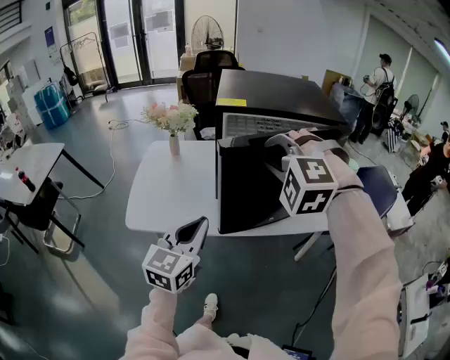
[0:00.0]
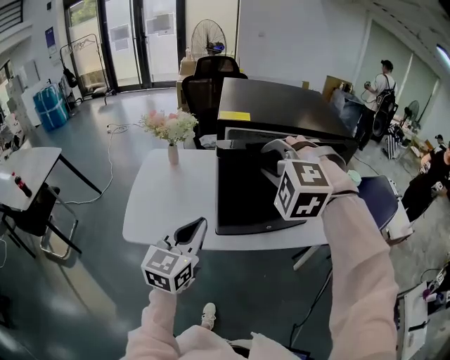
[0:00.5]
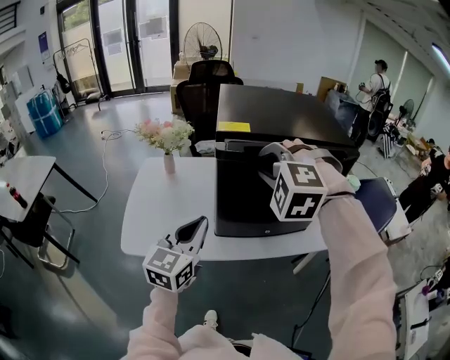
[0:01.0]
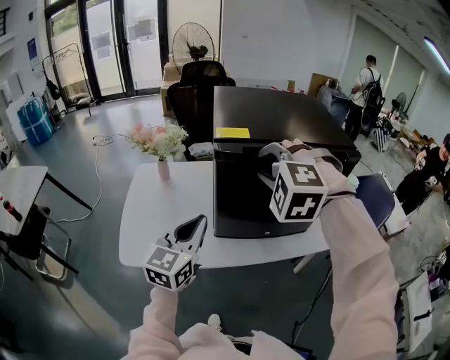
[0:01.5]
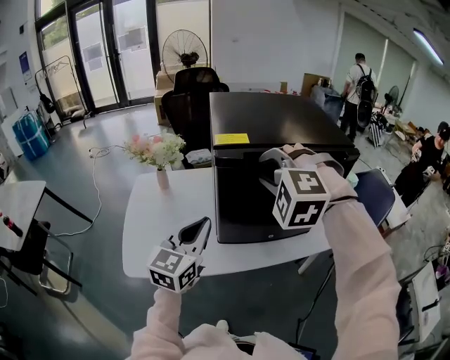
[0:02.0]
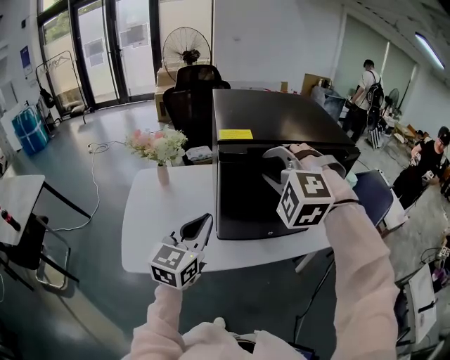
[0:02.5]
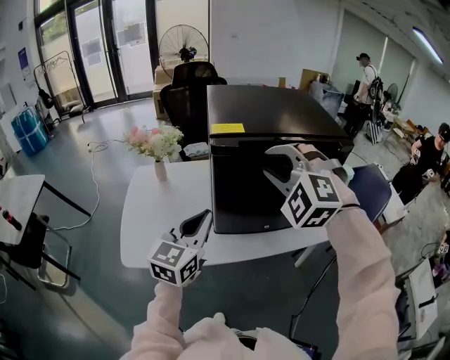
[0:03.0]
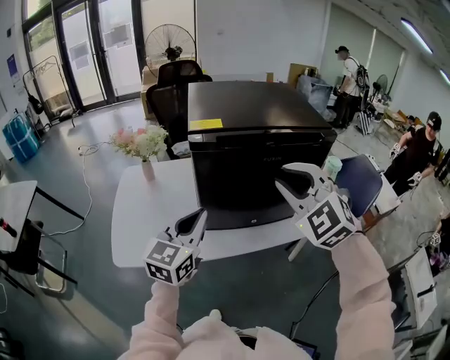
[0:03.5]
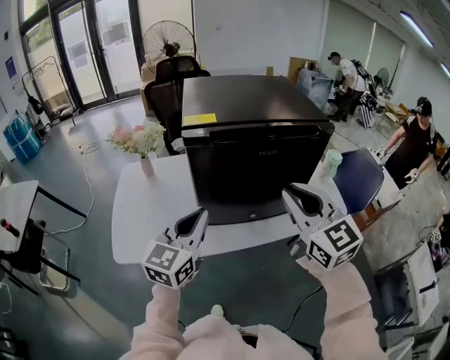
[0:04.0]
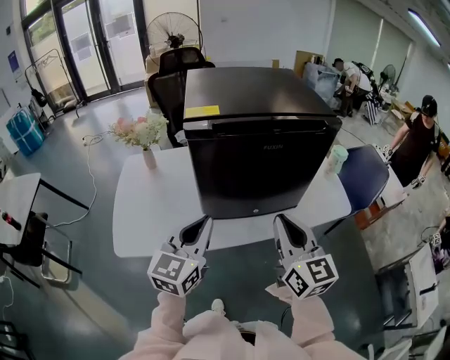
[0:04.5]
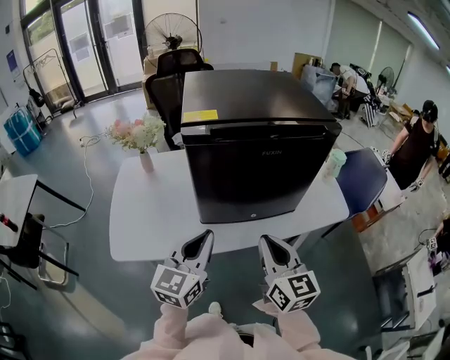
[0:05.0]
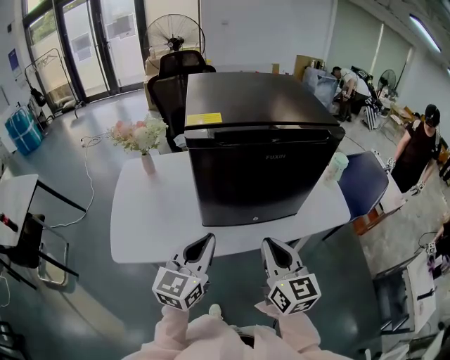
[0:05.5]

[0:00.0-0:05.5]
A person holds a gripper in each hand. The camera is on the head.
0:00.0 to 0:02.0: Both grippers move forward, about 15 cm.
0:02.0 to 0:03.5: The right gripper is displaced to the right and backward by approximately 15 cm, and swivels about 30 degrees, while the left gripper is displaced to the right by about 5 cm.
0:03.5 to 0:05.5: The left gripper is displaced downward by approximately 5 cm. The right gripper heads downward and backward, covering some 15 cm, rolls clockwise, seen from behind, by approximately 60 degrees, and closes up.

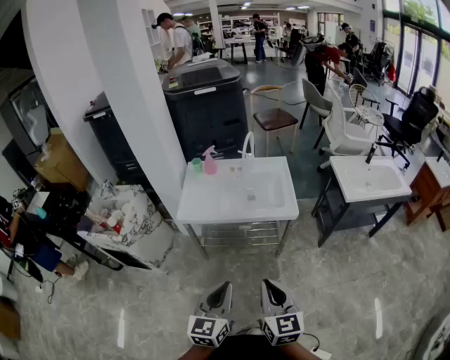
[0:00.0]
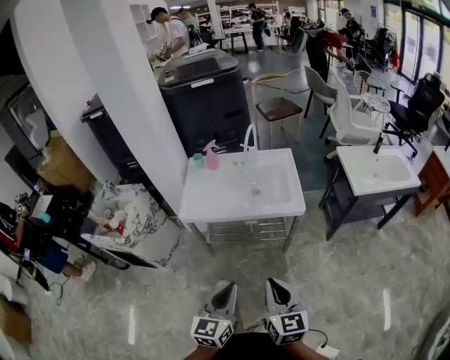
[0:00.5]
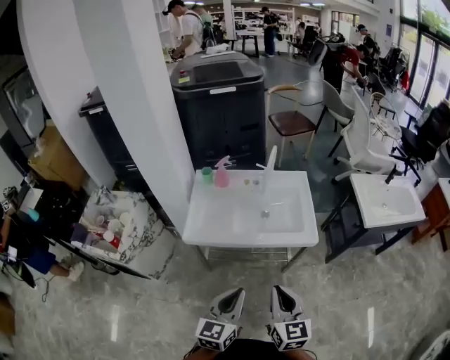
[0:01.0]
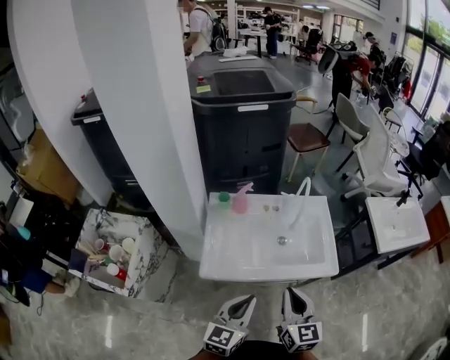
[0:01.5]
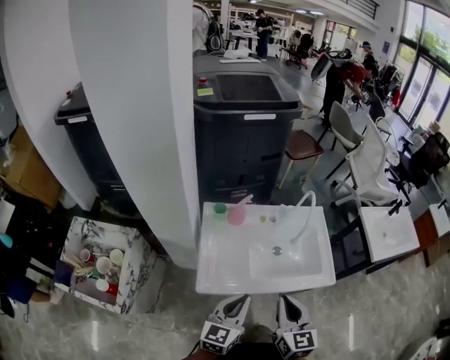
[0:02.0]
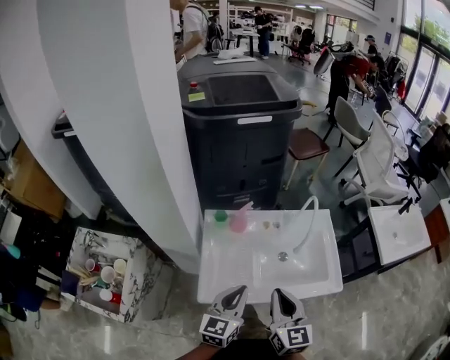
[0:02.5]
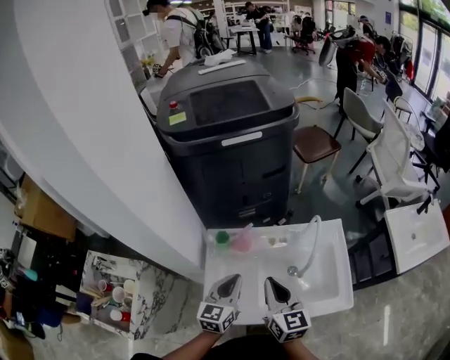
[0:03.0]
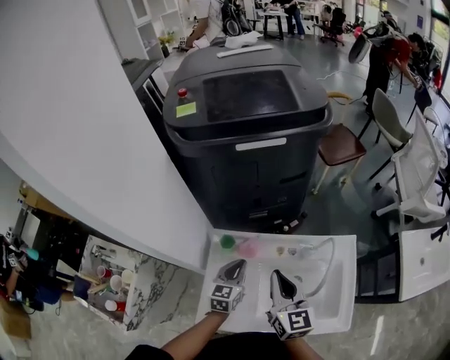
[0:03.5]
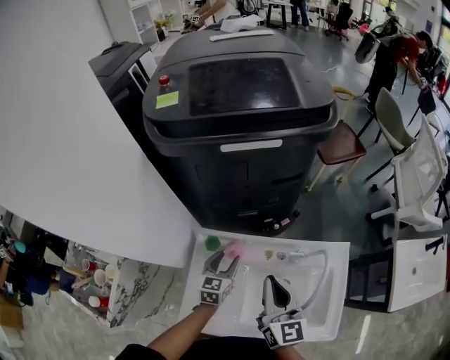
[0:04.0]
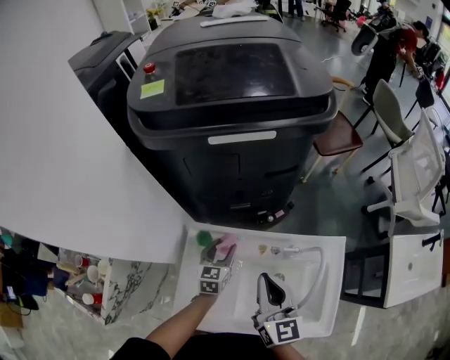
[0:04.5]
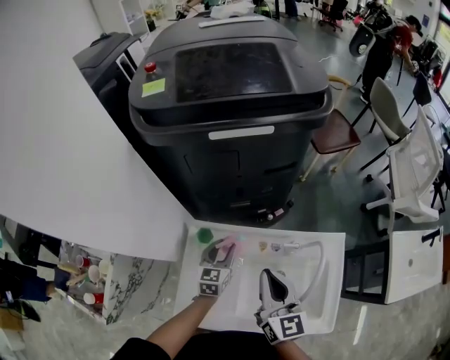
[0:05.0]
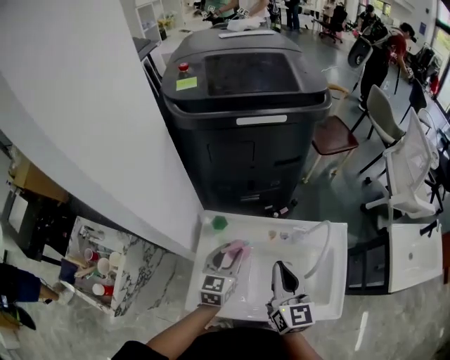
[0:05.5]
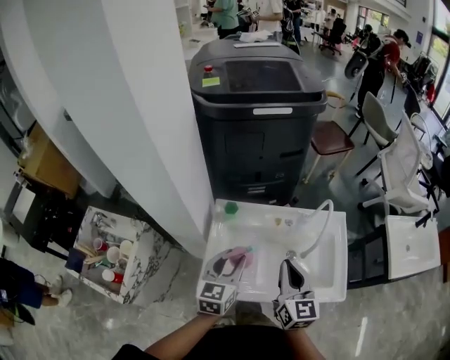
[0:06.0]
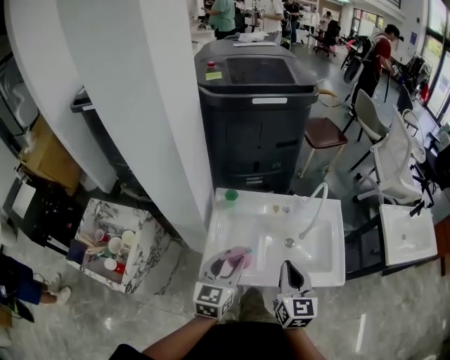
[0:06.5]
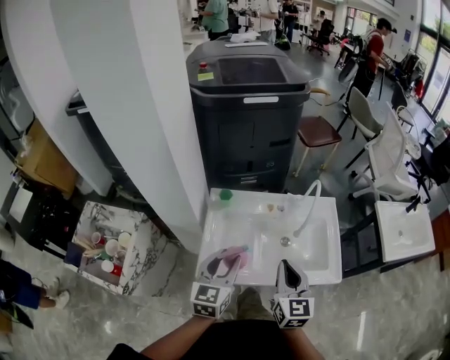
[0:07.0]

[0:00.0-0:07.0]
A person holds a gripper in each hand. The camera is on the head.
0:00.0 to 0:02.0: The pair of grippers is taken forward and to the left, roughly 50 cm.
0:02.0 to 0:03.5: The two grippers go roughly 35 cm forward.
0:03.5 to 0:05.0: The left gripper is displaced forward and downward by about 10 cm, and opens up.
0:05.0 to 0:07.0: The right gripper moves backward, some 25 cm, while the left gripper goes about 40 cm backward and upward.

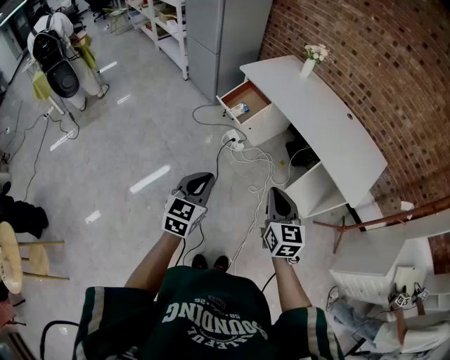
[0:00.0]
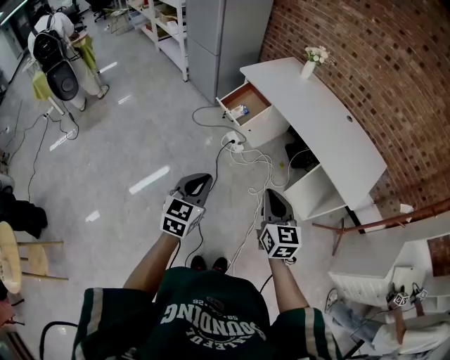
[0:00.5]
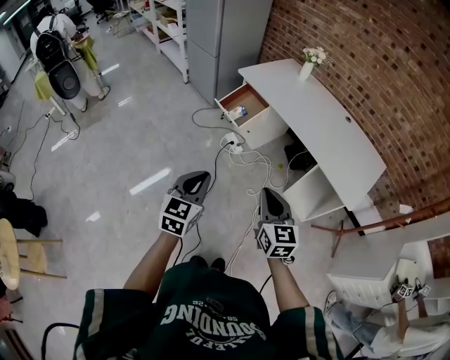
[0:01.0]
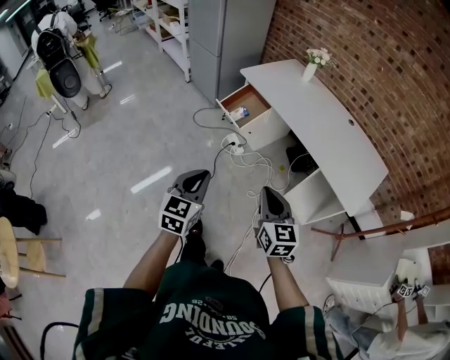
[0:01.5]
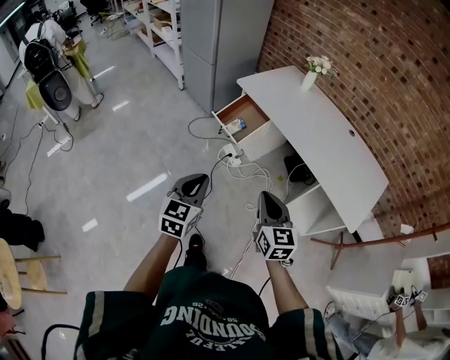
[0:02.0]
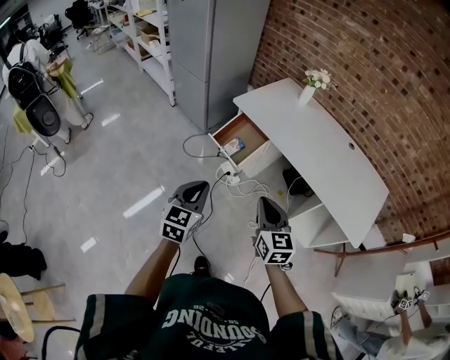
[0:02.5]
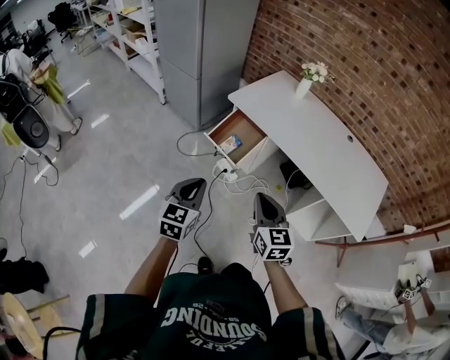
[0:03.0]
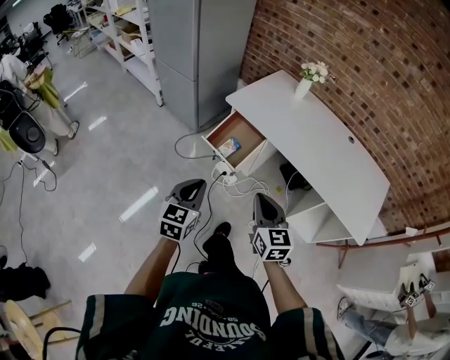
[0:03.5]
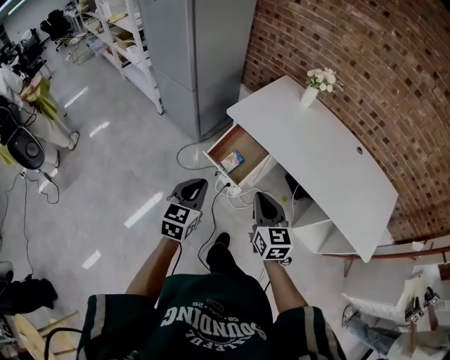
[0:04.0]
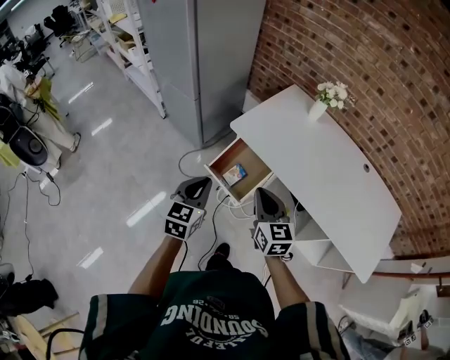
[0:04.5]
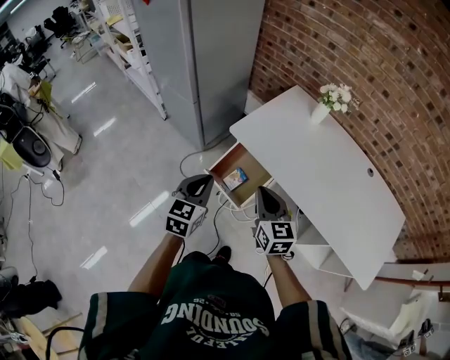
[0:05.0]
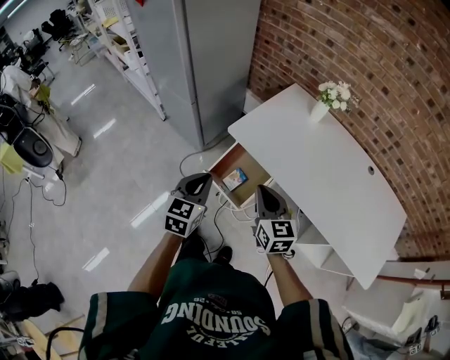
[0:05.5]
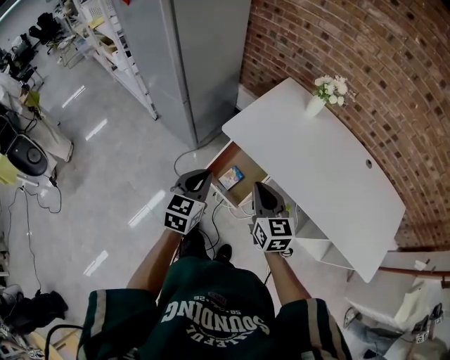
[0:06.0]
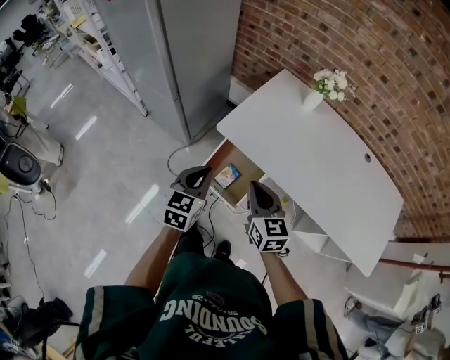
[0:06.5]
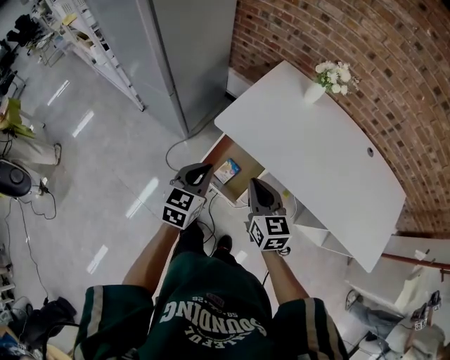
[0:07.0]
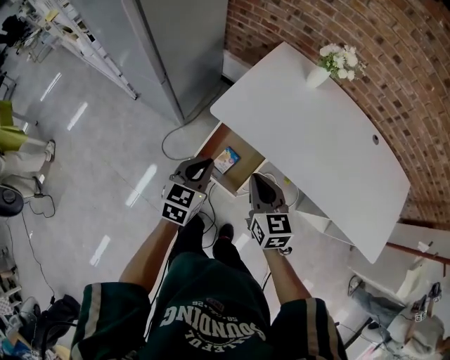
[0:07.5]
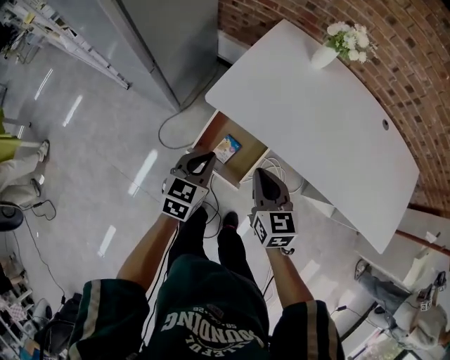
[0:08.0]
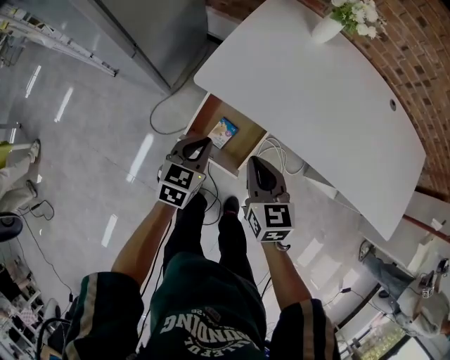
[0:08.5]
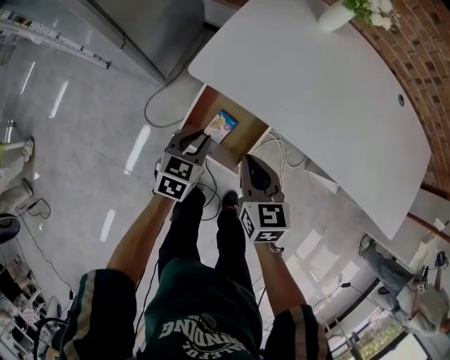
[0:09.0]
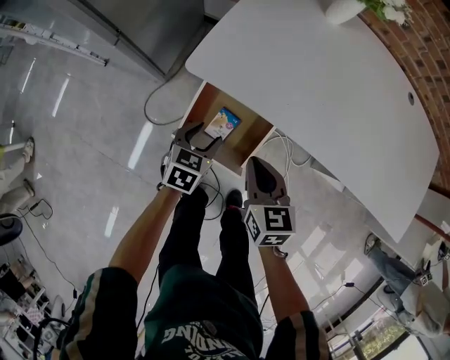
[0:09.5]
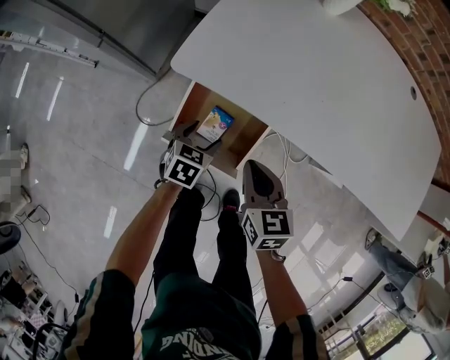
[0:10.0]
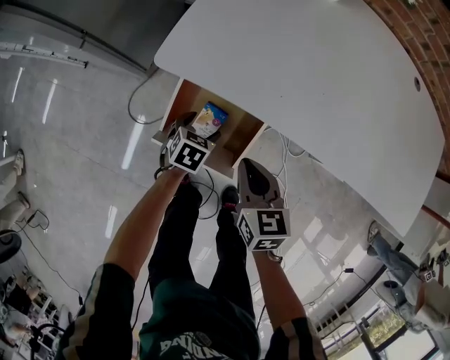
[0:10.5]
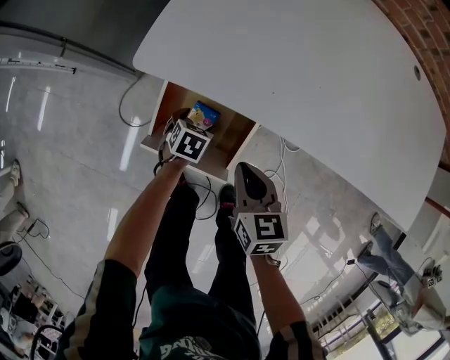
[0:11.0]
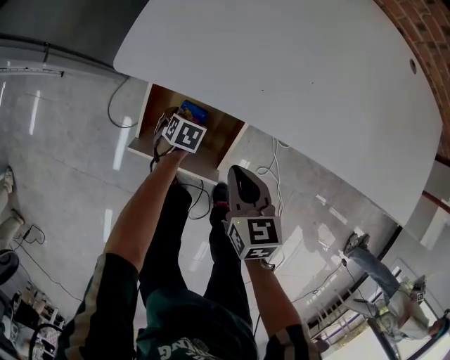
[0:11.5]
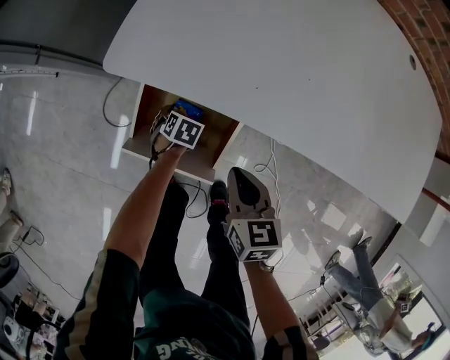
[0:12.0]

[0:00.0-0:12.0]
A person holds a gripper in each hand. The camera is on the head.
0:00.0 to 0:02.0: Both grippers move forward, approximately 10 cm.
0:02.0 to 0:04.0: The right gripper is displaced forward and to the left by approximately 30 cm. Meanwhile the left gripper heads forward, covering some 30 cm.
0:04.0 to 0:06.0: The grippers both shift forward by approximately 20 cm.
0:06.0 to 0:08.0: Both grippers travel together downward and forward, approximately 15 cm.
0:08.0 to 0:10.0: The right gripper heads downward, covering some 15 cm. The left gripper moves downward, approximately 25 cm, swivels some 20 degrees, and opens its fingers.
0:10.0 to 0:12.0: The left gripper travels downward by roughly 20 cm, and swivels some 20 degrees. Meanwhile the right gripper travels downward by approximately 5 cm.

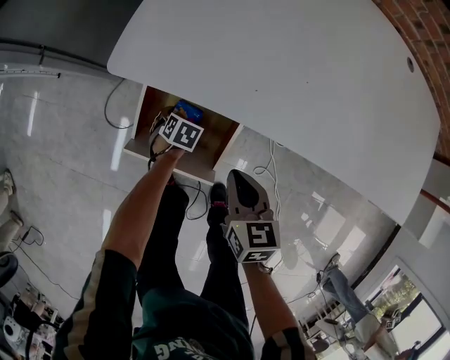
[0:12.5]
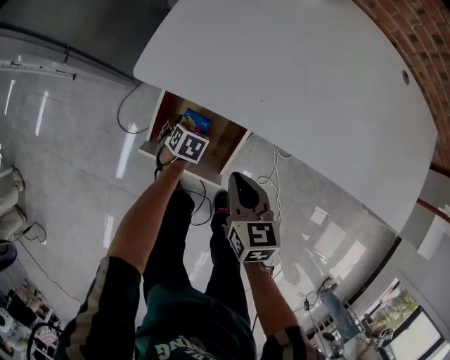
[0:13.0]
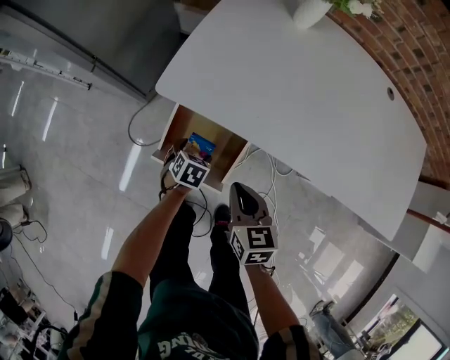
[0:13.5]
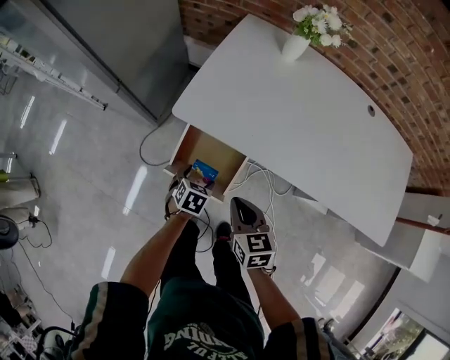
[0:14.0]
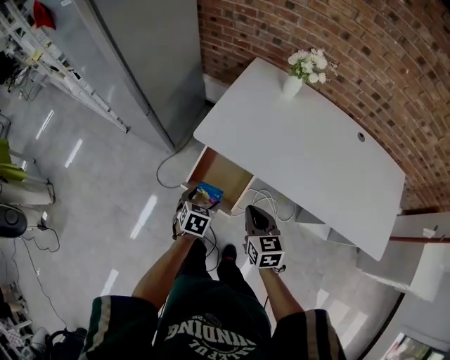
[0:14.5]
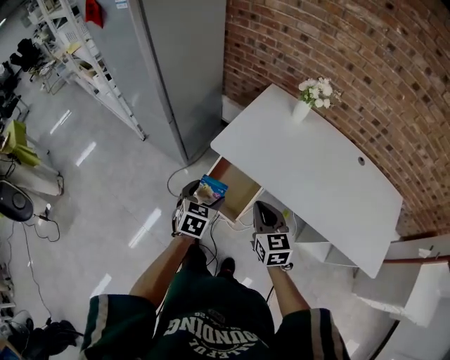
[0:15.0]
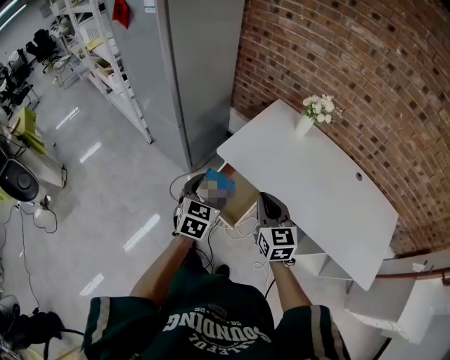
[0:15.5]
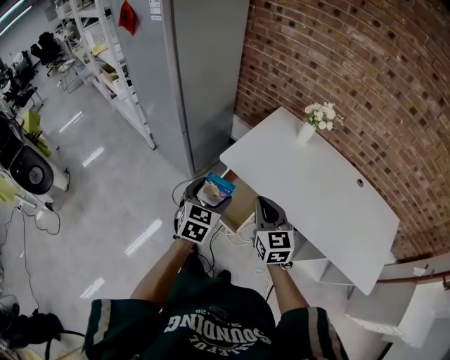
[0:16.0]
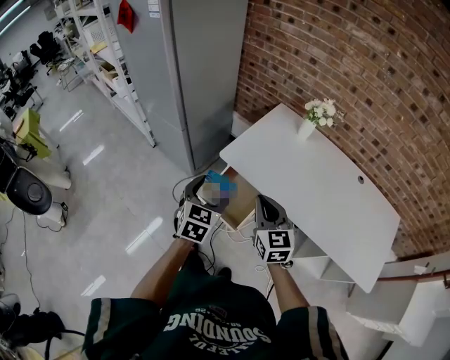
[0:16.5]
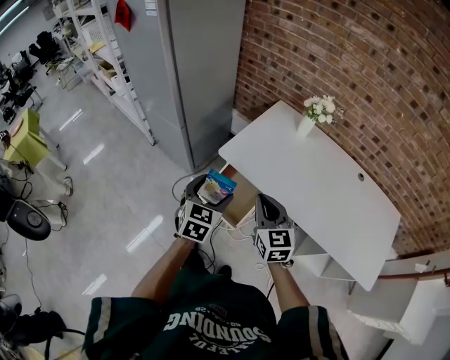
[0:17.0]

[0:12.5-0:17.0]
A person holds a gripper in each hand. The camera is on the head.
0:12.5 to 0:14.5: The left gripper is displaced upward by approximately 35 cm, and turns by some 20 degrees. The right gripper shifts some 20 cm upward.
0:14.5 to 0:17.0: The two grippers go about 20 cm upward. The right gripper swivels roughly 20 degrees, while the left gripper rotates about 30 degrees.
